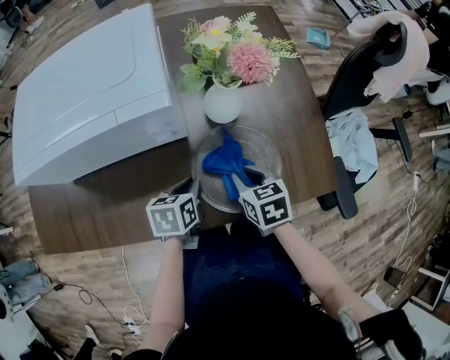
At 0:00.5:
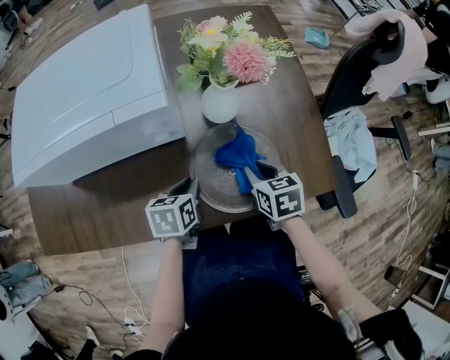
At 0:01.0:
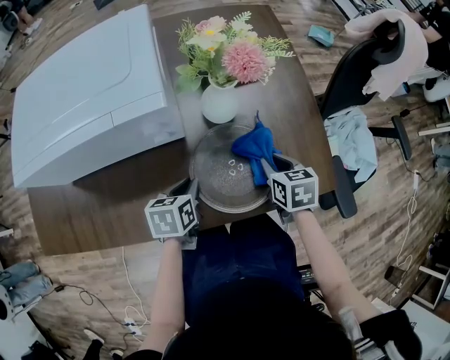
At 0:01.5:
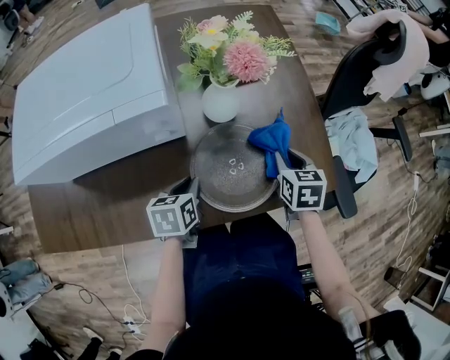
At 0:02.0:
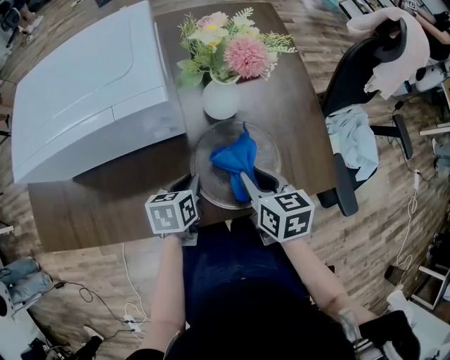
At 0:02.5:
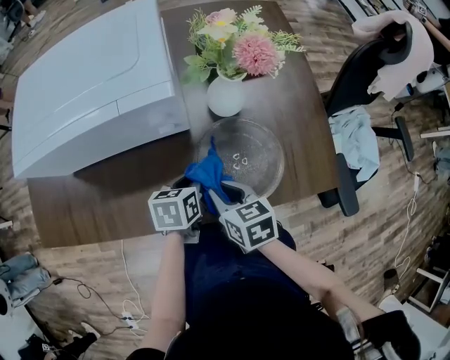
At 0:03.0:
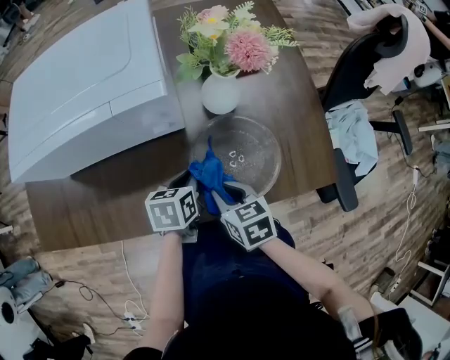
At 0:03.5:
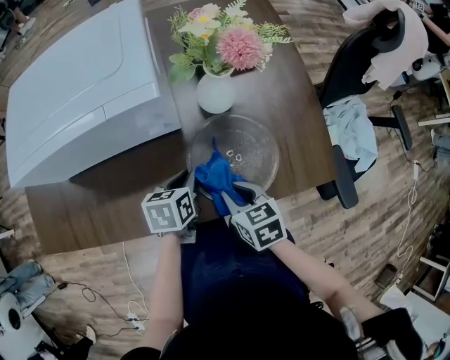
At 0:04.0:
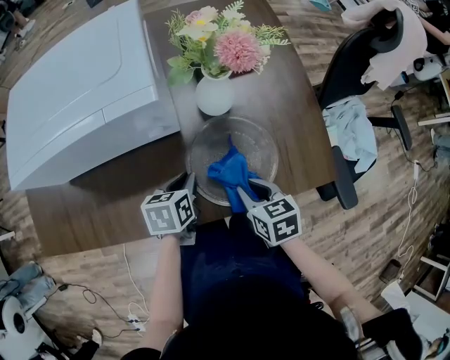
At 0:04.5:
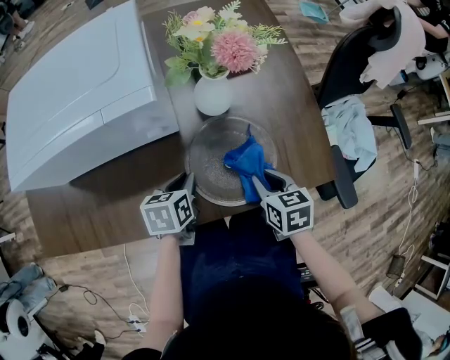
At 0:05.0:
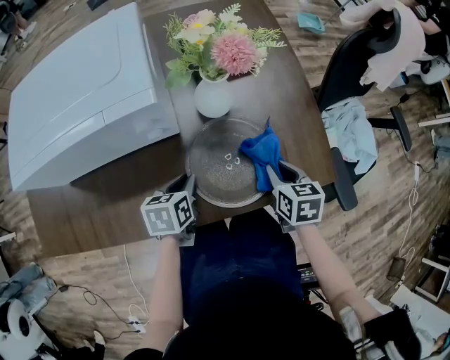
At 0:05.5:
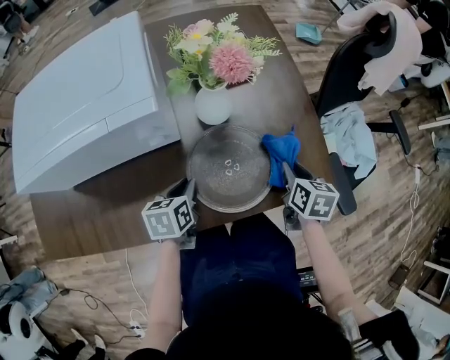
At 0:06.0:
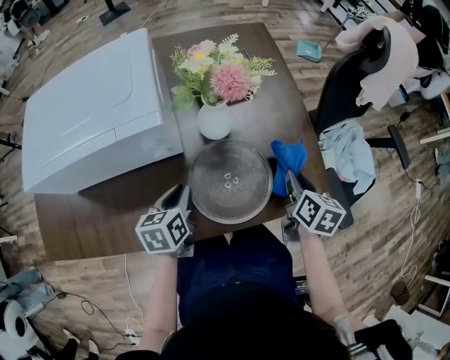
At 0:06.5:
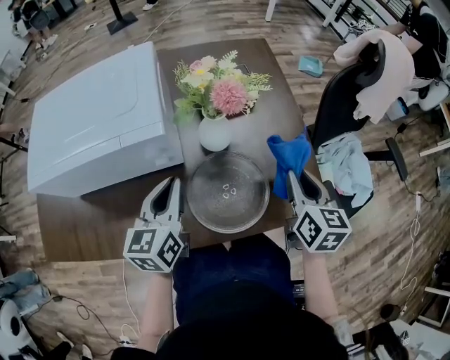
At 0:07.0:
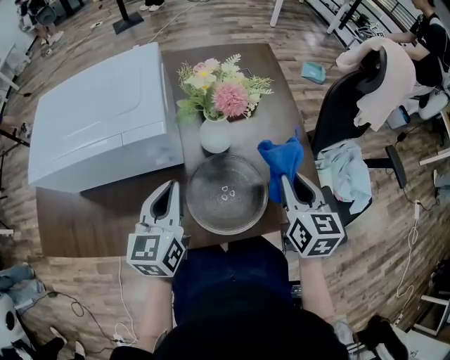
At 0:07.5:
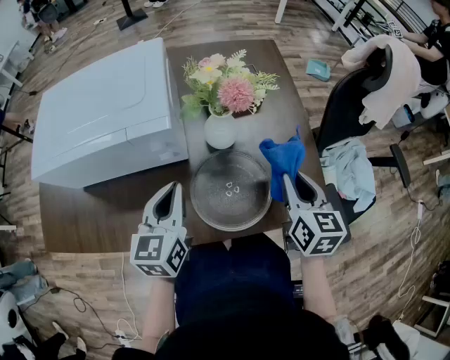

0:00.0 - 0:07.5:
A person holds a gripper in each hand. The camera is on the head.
0:00.0 - 0:02.0: The right gripper shifts roughly 5 cm upward, and moves roughly 15 cm to the right and comes back.
0:02.0 - 0:04.0: The right gripper goes about 5 cm downward, and goes to the left and returns, roughly 10 cm each way.
0:04.0 - 0:05.5: The right gripper shifts about 15 cm to the right and forward, and rotates about 30 degrees.
0:05.5 - 0:07.5: The grippers both shift upward by roughly 15 cm. The left gripper rotates approximately 40 degrees. The right gripper rotates about 20 degrees.

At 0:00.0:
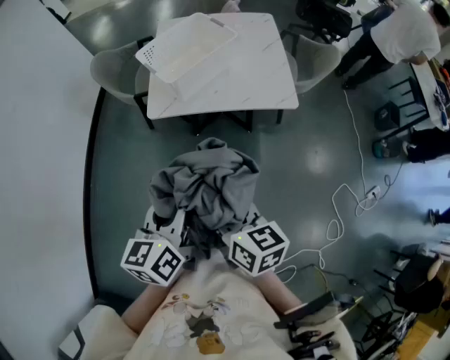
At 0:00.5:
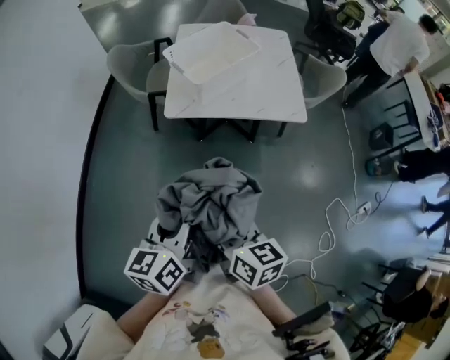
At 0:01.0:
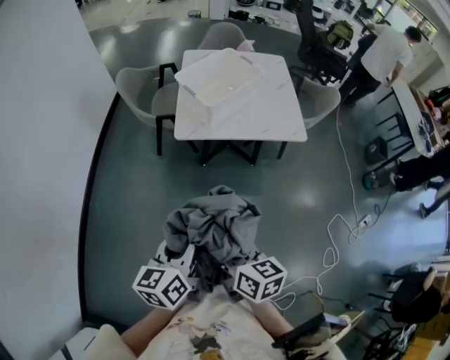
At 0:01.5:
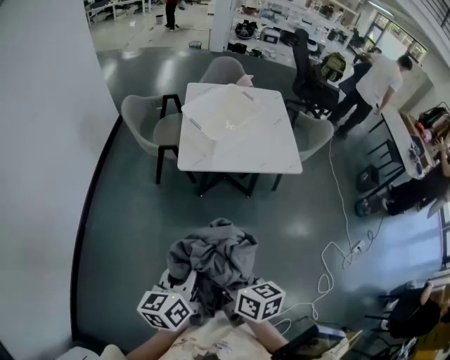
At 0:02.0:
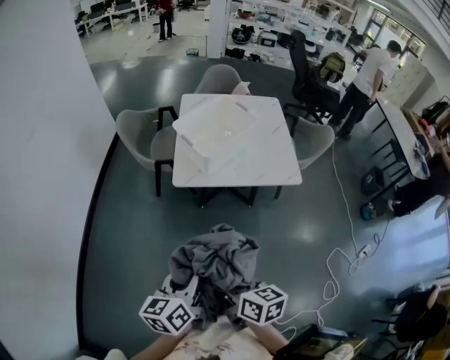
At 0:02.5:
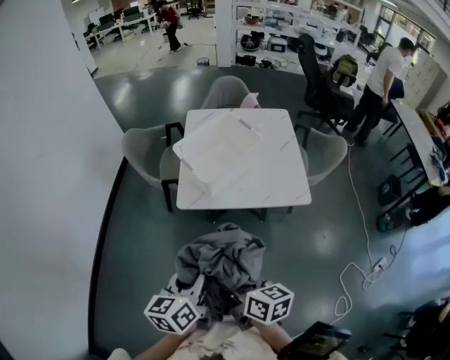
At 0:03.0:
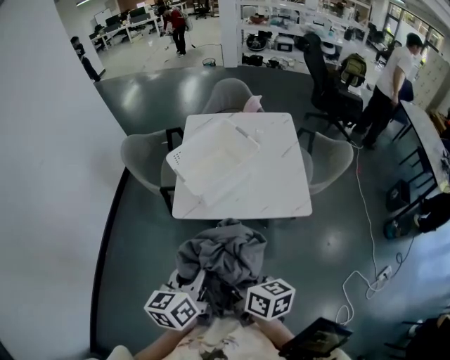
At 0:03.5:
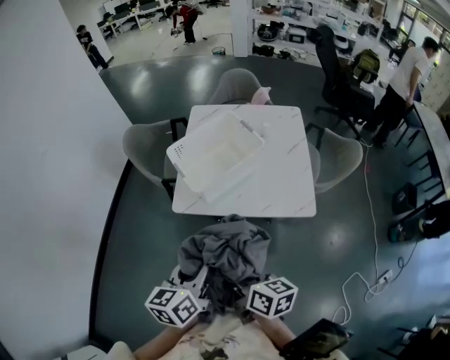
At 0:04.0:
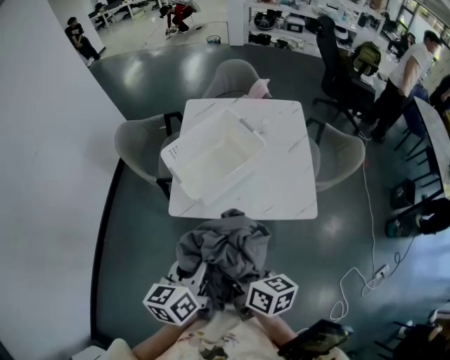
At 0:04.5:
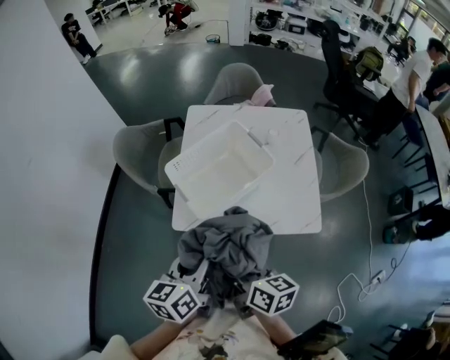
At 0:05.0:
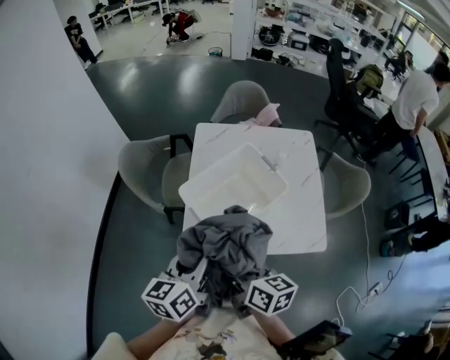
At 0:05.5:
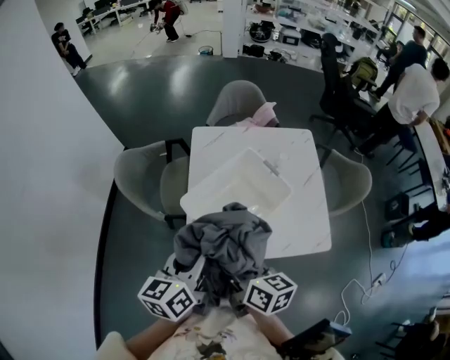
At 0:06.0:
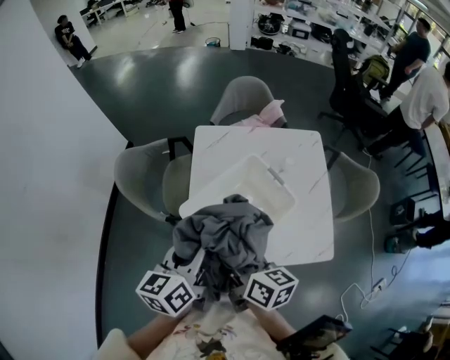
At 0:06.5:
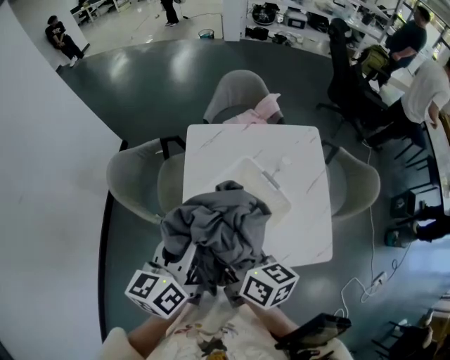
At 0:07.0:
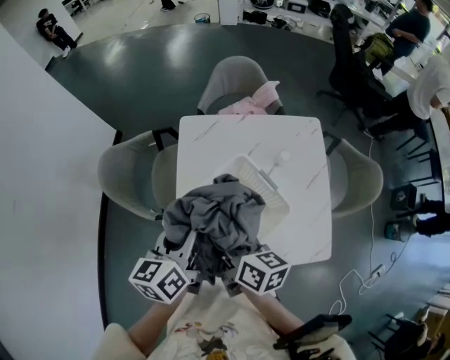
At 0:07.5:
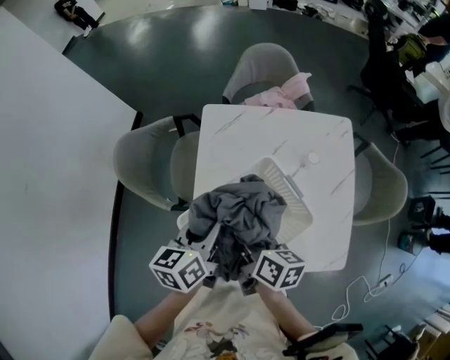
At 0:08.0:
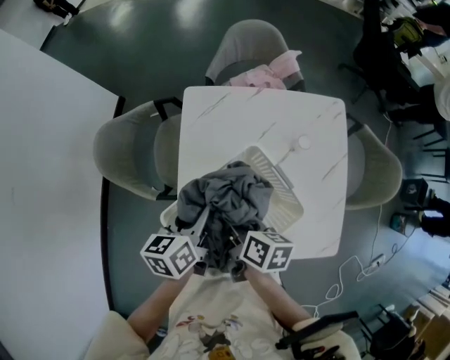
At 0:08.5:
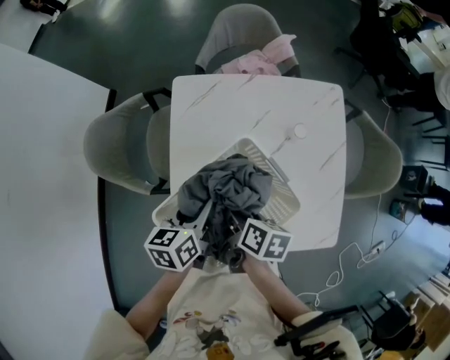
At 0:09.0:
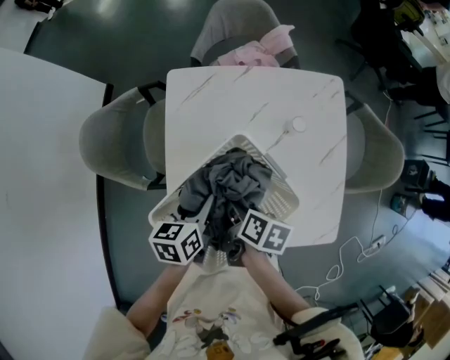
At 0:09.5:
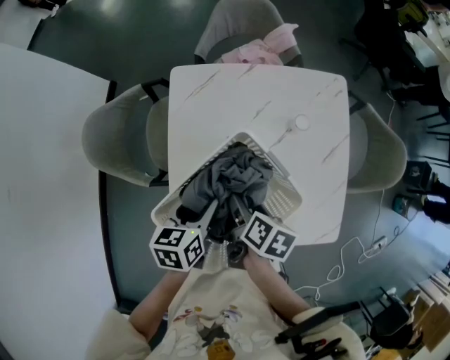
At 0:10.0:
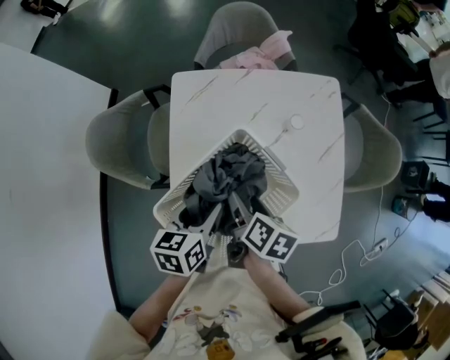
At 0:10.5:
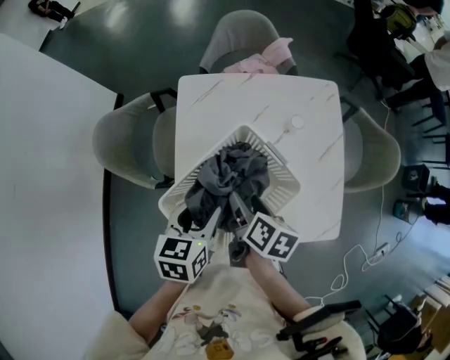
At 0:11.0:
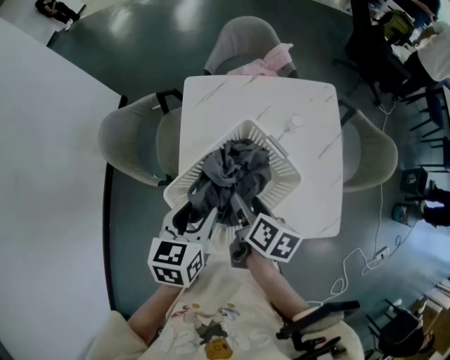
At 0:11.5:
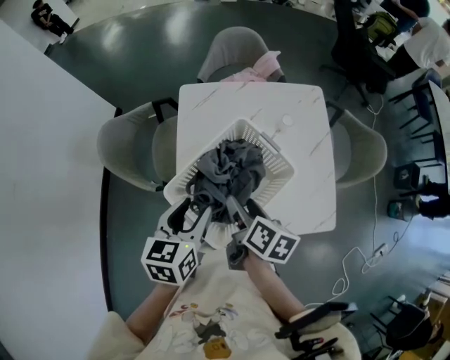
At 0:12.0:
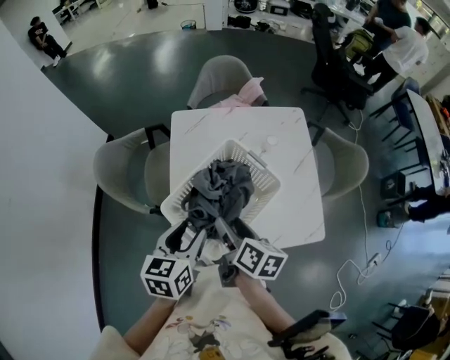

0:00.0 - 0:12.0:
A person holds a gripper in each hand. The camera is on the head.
0:00.0 - 0:02.0: Both grippers move to the left, about 15 cm.
0:02.0 - 0:04.0: The grippers both shift forward and to the right by approximately 30 cm.
0:04.0 - 0:06.0: The grippers both shift forward by about 30 cm.
0:06.0 - 0:08.0: Both grippers move forward and downward, roughly 20 cm. The right gripper turns by some 30 degrees.
0:08.0 - 0:10.0: The left gripper ends up roughly 5 cm from where it was. The right gripper heads to the right, covering approximately 5 cm.
0:10.0 - 0:12.0: Both grippers travel together backward and upward, roughly 15 cm.

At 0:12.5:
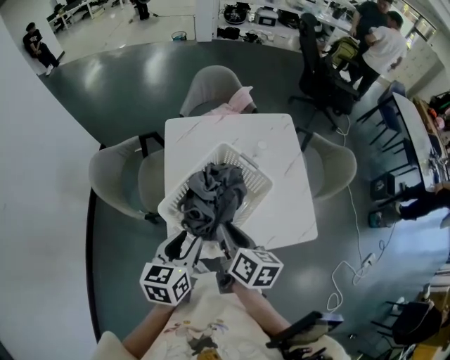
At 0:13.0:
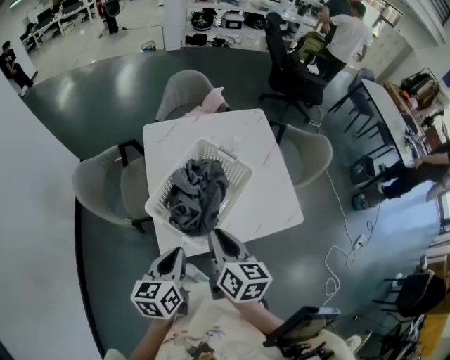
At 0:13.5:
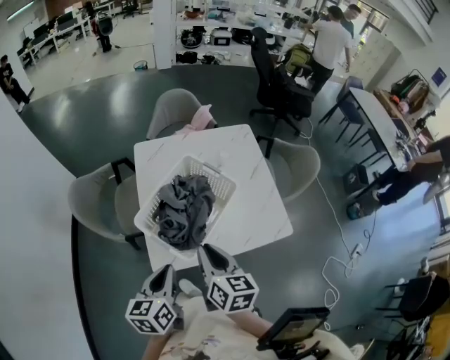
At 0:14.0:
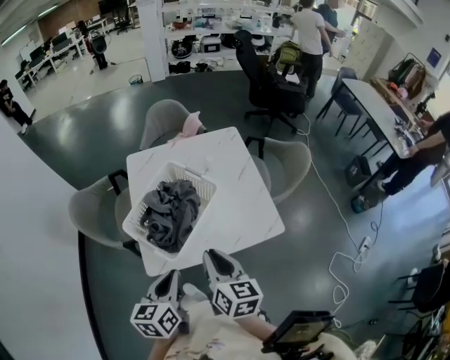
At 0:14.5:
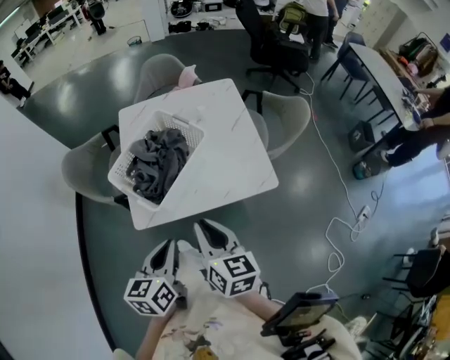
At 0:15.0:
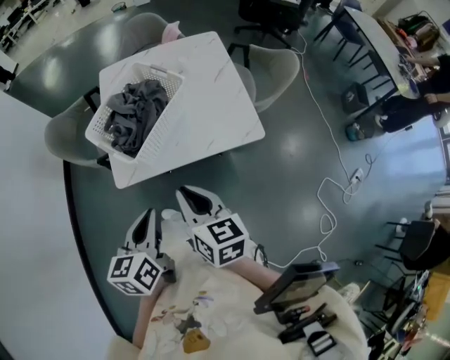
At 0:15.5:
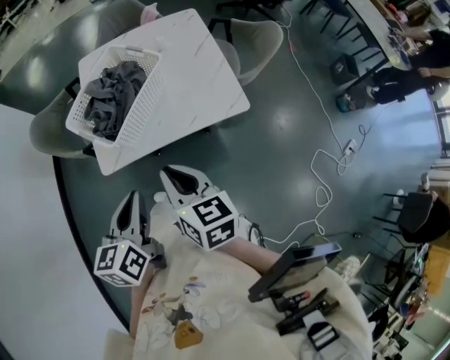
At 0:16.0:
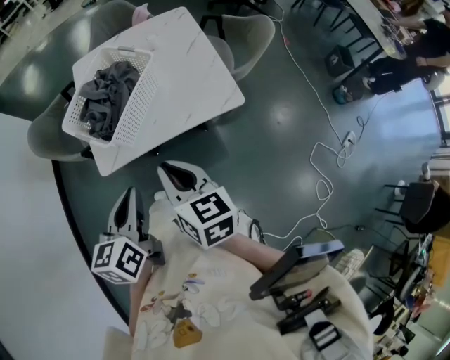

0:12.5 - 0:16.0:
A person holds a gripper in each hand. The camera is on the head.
0:12.5 - 0:14.5: Both grippers travel together backward and to the right, roughly 20 cm. The left gripper closes up; the right gripper changes its angle by approximately 20 degrees.
0:14.5 - 0:16.0: The two grippers go about 5 cm backward.

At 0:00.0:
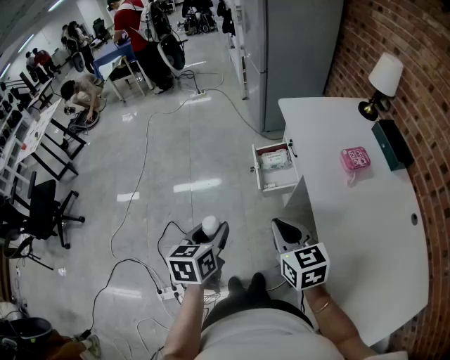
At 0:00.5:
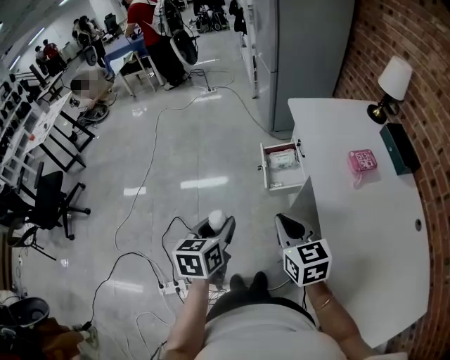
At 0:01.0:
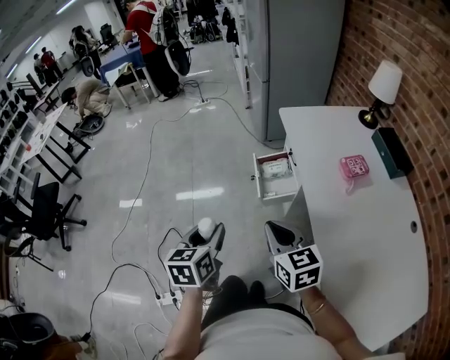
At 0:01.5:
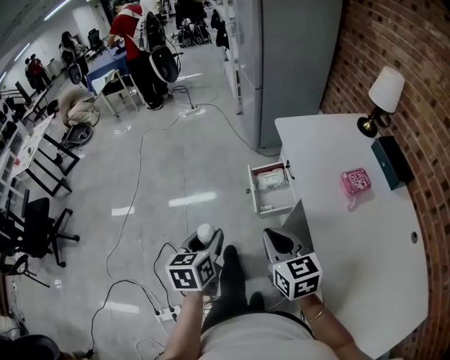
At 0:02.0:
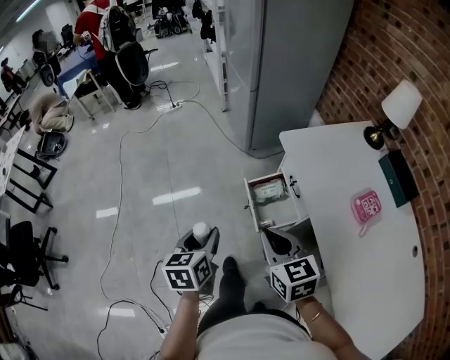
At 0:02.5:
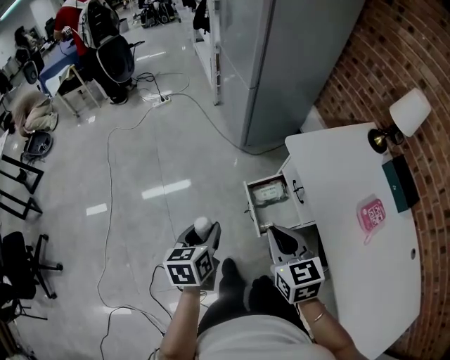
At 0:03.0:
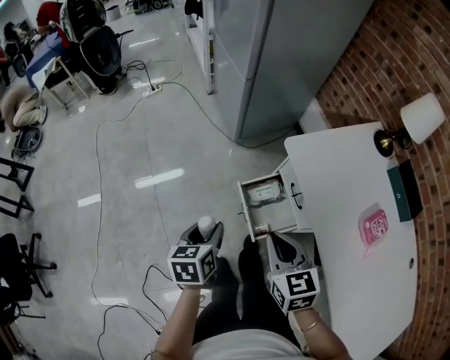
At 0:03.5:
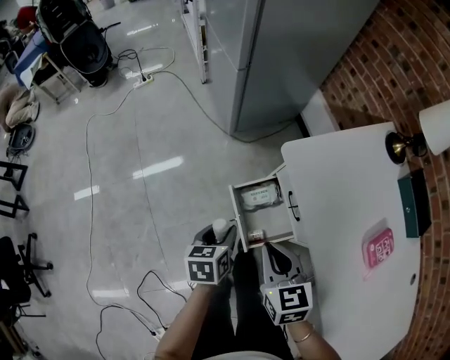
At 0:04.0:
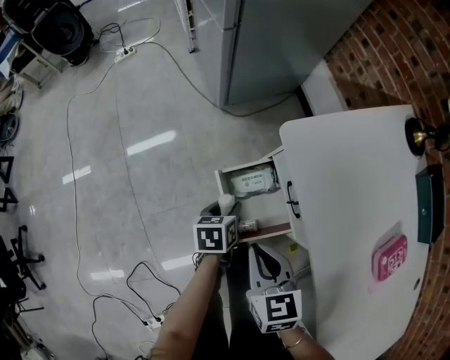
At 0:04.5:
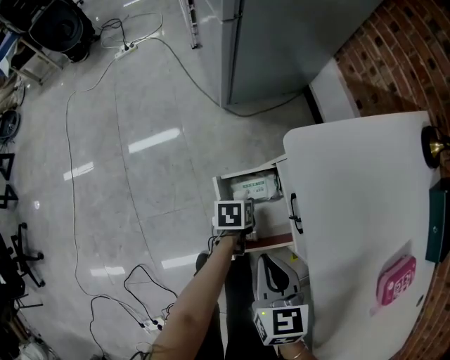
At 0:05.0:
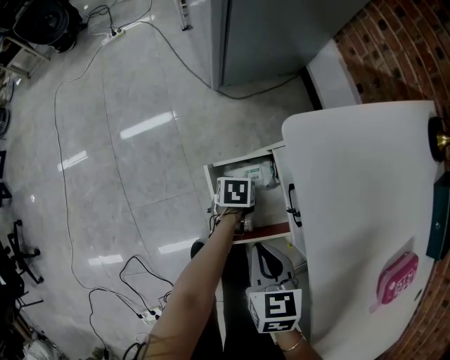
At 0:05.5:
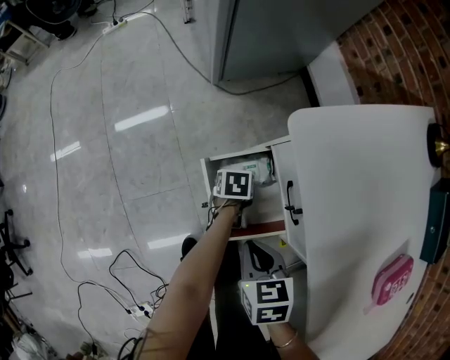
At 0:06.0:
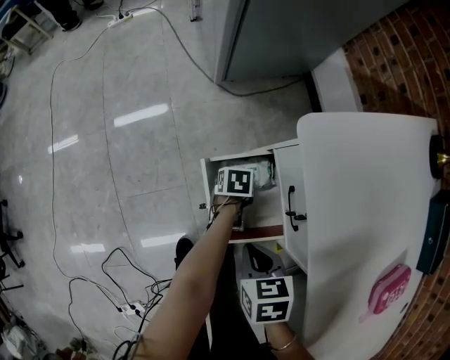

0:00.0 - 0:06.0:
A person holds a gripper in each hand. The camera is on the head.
0:00.0 - 0:02.0: Both grippers travel together forward, roughly 30 cm.
0:02.0 - 0:04.0: The left gripper is displaced downward, forward and to the right by approximately 50 cm, and rotates about 30 degrees, while the right gripper travels downward and forward by approximately 35 cm.
0:04.0 - 0:06.0: The right gripper travels downward by about 15 cm, and changes its angle by roughly 30 degrees; the left gripper shifts about 20 cm downward and forward.
